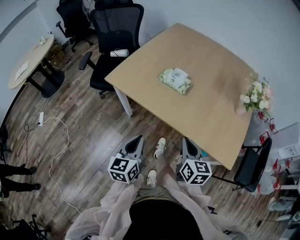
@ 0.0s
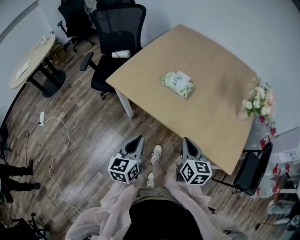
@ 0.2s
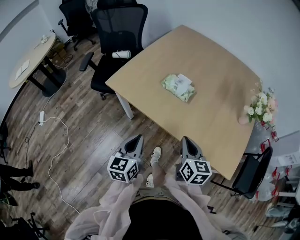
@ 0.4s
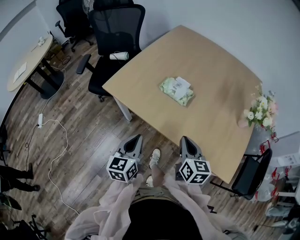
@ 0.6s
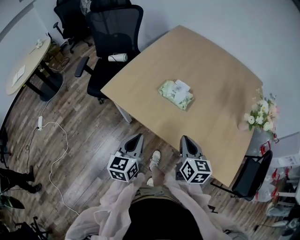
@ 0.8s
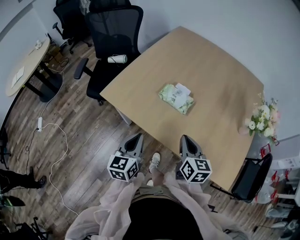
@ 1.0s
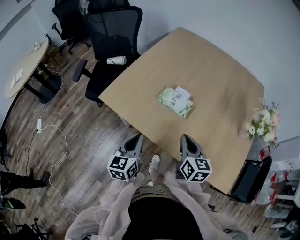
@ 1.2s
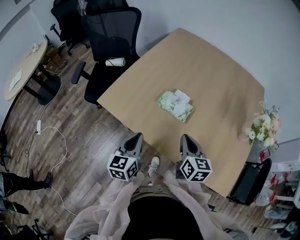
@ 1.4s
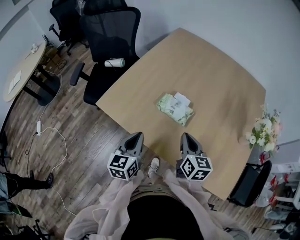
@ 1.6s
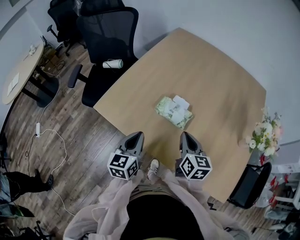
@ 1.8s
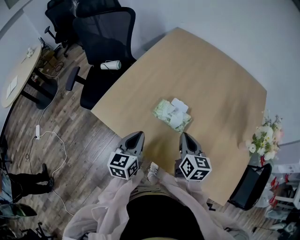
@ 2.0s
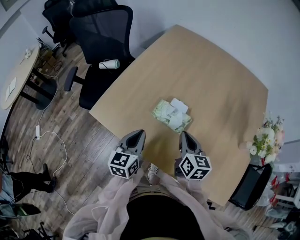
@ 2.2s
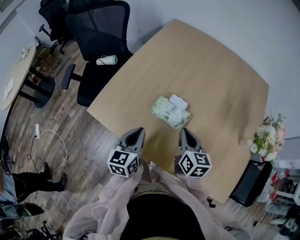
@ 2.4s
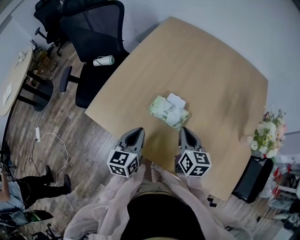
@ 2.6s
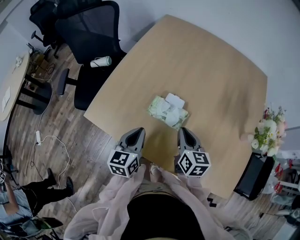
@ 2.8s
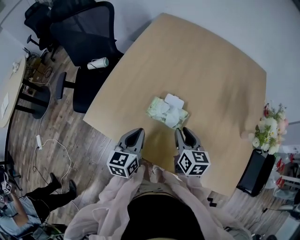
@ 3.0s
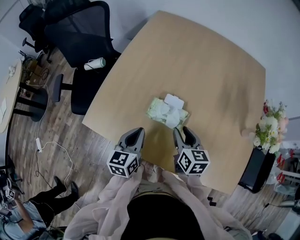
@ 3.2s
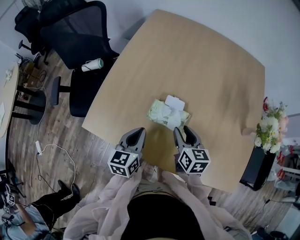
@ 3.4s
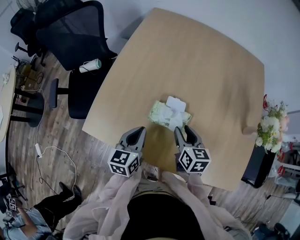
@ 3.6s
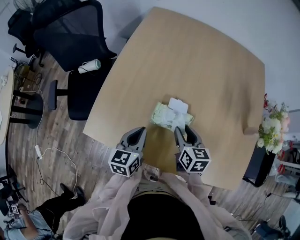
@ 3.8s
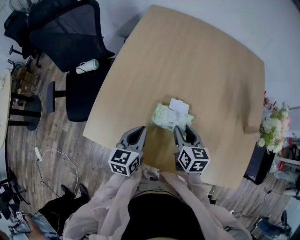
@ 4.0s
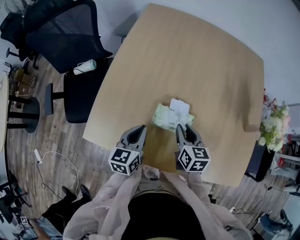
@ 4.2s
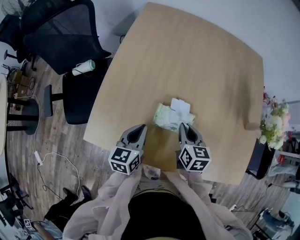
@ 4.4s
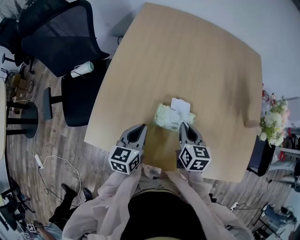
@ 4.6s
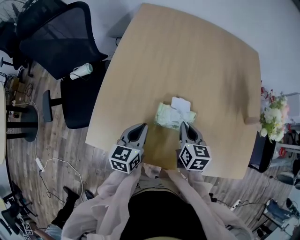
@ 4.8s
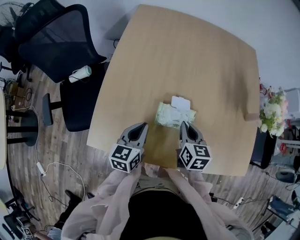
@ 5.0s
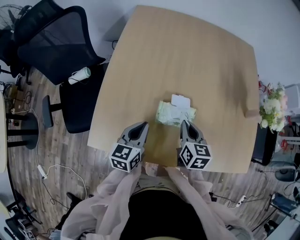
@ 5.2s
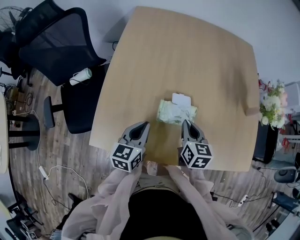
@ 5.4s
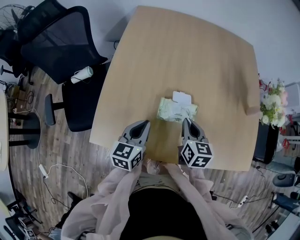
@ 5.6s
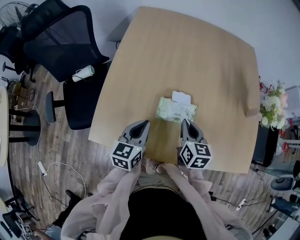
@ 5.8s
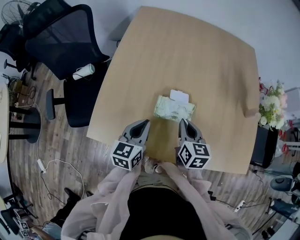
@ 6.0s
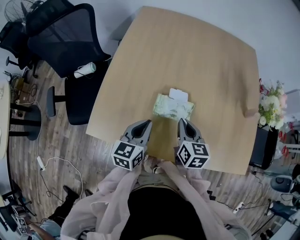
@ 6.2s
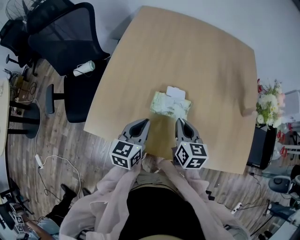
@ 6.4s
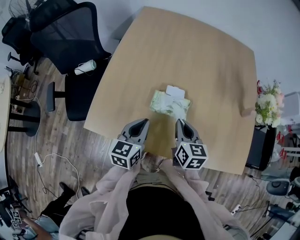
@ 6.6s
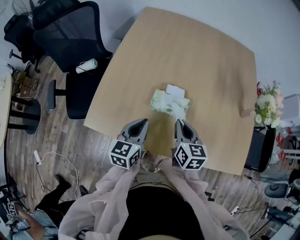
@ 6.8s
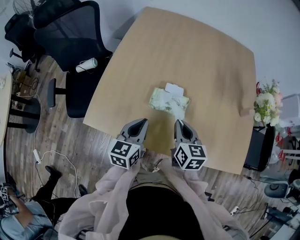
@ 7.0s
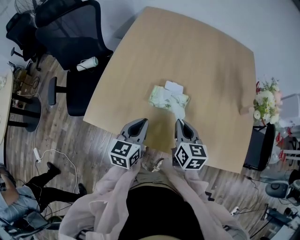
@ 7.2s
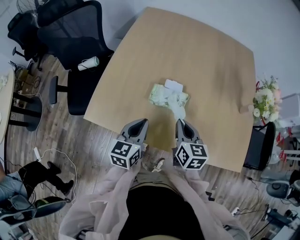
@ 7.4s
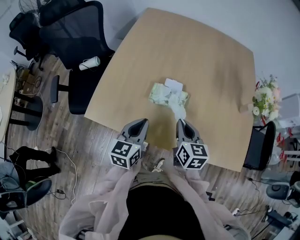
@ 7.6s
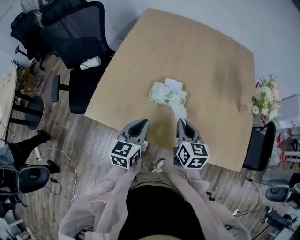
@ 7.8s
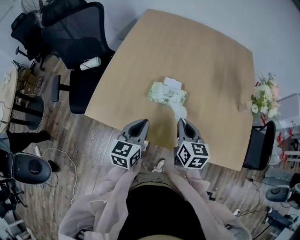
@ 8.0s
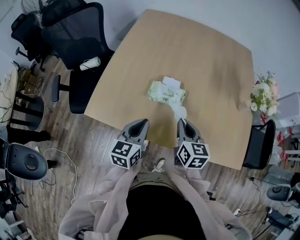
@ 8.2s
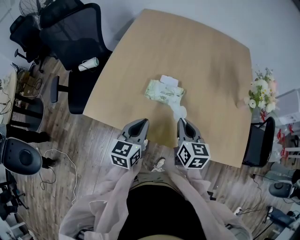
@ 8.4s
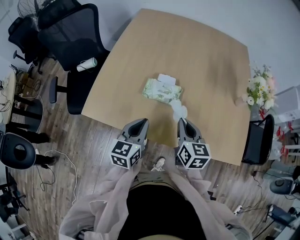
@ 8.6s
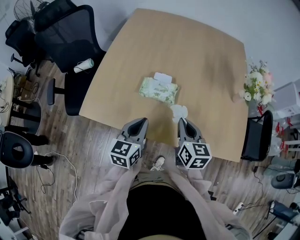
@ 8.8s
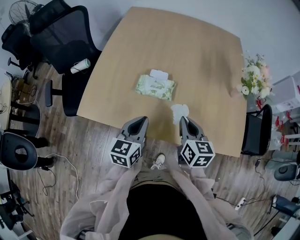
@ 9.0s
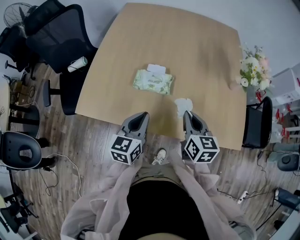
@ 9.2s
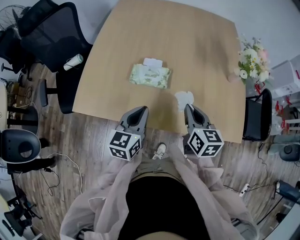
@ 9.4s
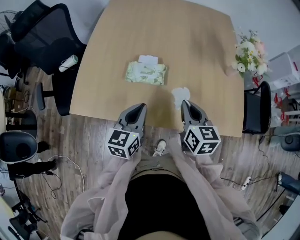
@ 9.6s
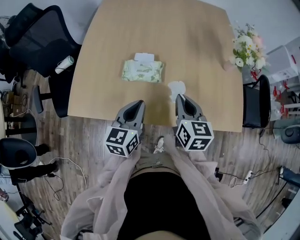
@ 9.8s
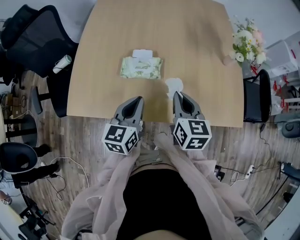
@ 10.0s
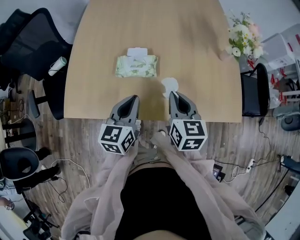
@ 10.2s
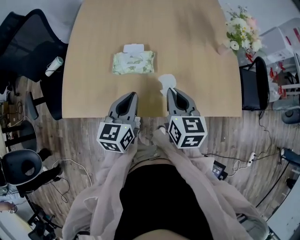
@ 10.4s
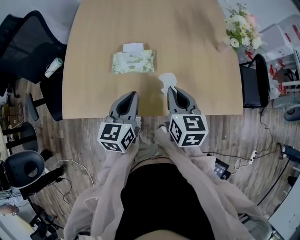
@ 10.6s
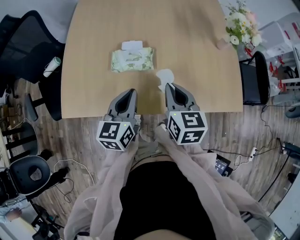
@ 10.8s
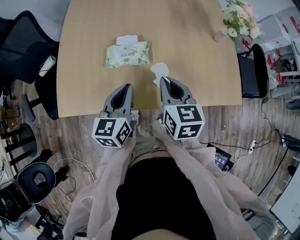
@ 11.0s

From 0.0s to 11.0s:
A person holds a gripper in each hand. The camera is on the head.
From 0.0s to 1.6s: The two grippers go roughly 20 cm forward.
From 1.6s to 3.2s: Both grippers travel together forward, roughly 10 cm. The right gripper opens its fingers.
From 3.2s to 4.8s: The left gripper moves forward, about 5 cm. Meanwhile the right gripper ends up some 5 cm from where it was, and closes up.
From 4.8s to 6.2s: The left gripper changes place by roughly 5 cm.
From 6.2s to 7.8s: The grippers both shift backward by roughly 5 cm.
From 7.8s to 9.4s: The grippers both shift to the right by some 10 cm.
From 9.4s to 11.0s: The grippers stay close to where they were, moving slightly.

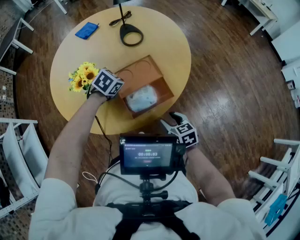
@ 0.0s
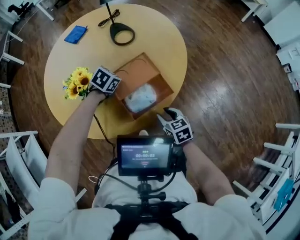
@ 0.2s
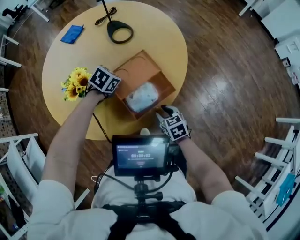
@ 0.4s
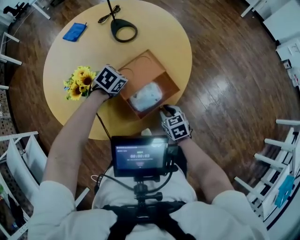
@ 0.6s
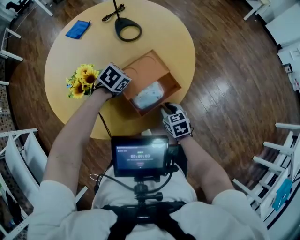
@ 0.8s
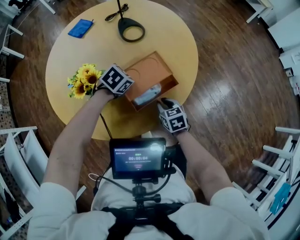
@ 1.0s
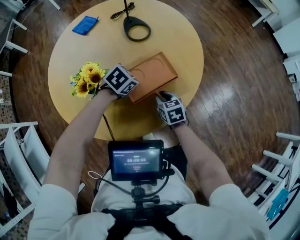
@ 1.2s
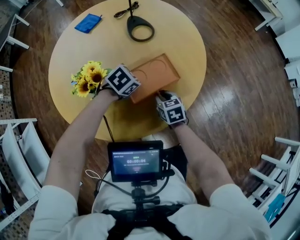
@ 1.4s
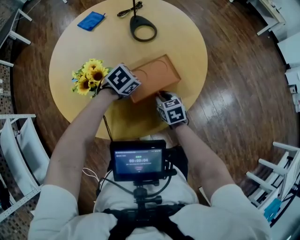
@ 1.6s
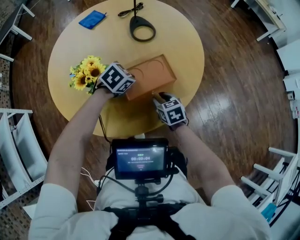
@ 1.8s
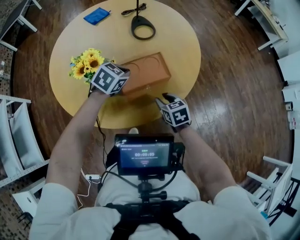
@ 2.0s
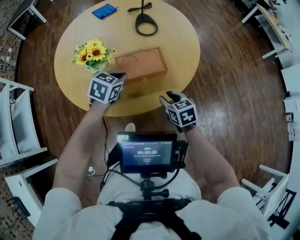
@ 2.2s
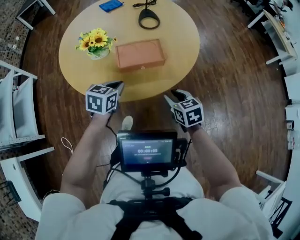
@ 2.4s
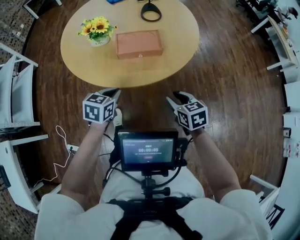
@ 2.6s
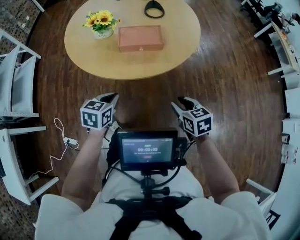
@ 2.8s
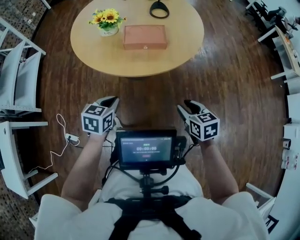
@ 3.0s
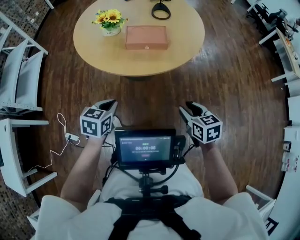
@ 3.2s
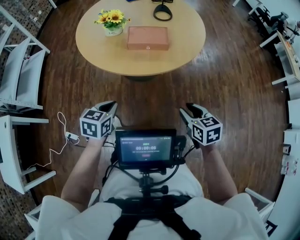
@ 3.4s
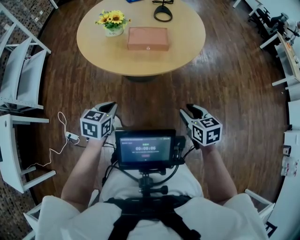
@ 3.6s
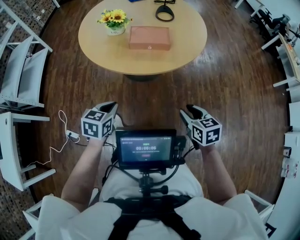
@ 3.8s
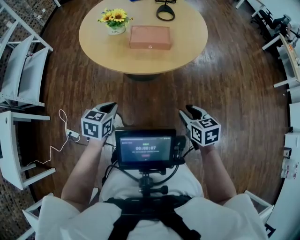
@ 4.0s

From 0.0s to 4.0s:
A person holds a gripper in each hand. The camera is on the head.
From 0.0s to 1.4s: The right gripper goes about 20 cm to the left and forward, and closes its fingers.
From 1.4s to 2.6s: The left gripper moves about 25 cm, and changes its angle by approximately 60 degrees. Meanwhile the right gripper shifts by roughly 25 cm, and rotates approximately 20 degrees.
From 2.6s to 4.0s: Both grippers travel together backward, roughly 15 cm.

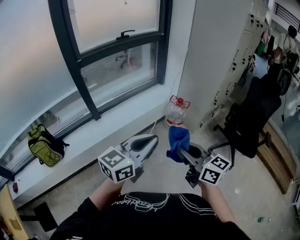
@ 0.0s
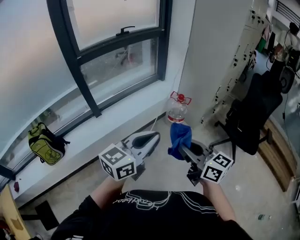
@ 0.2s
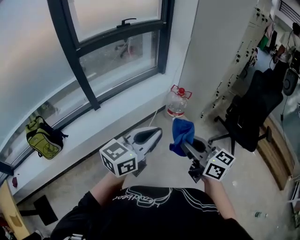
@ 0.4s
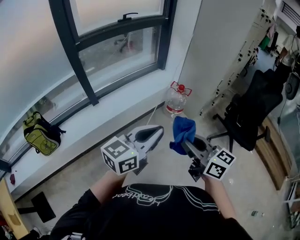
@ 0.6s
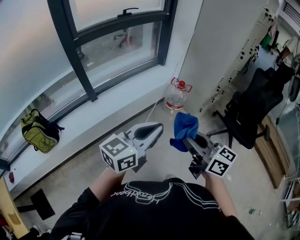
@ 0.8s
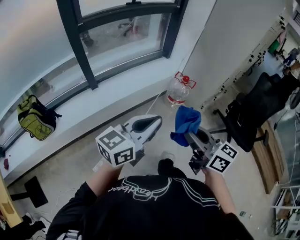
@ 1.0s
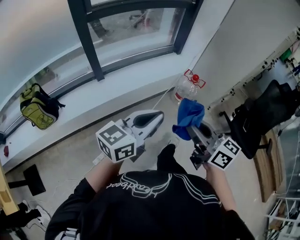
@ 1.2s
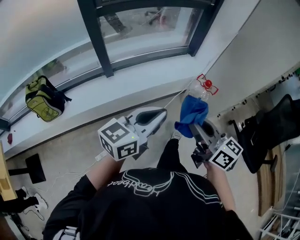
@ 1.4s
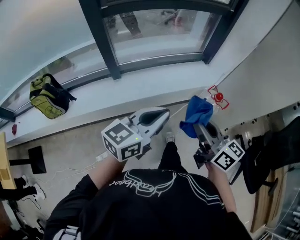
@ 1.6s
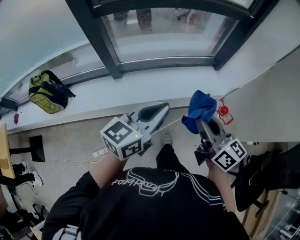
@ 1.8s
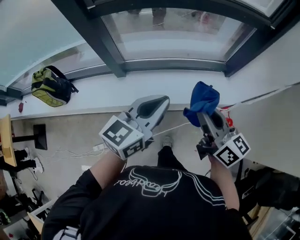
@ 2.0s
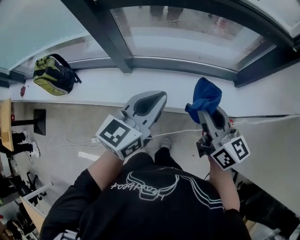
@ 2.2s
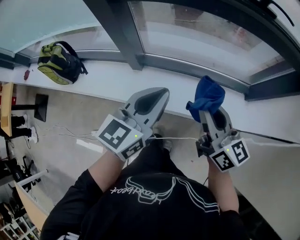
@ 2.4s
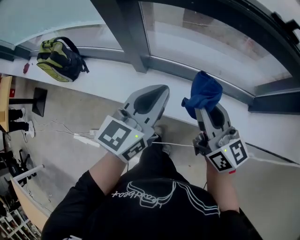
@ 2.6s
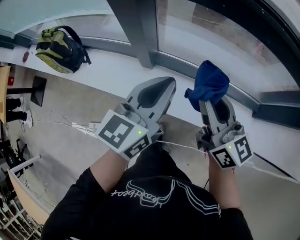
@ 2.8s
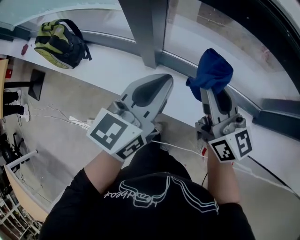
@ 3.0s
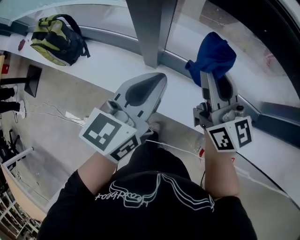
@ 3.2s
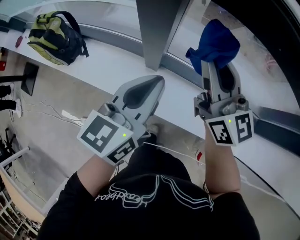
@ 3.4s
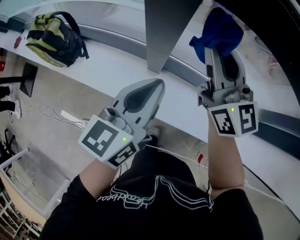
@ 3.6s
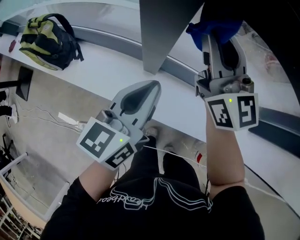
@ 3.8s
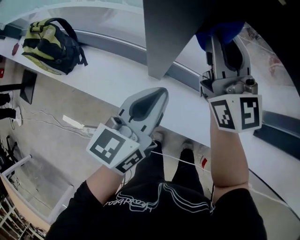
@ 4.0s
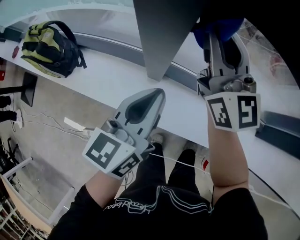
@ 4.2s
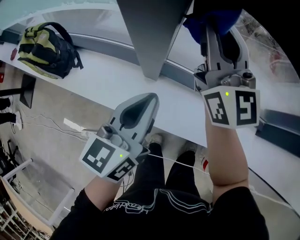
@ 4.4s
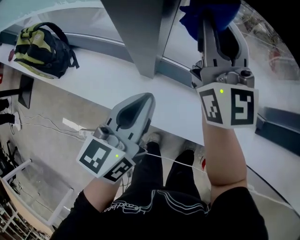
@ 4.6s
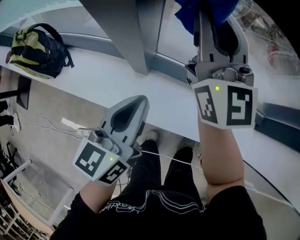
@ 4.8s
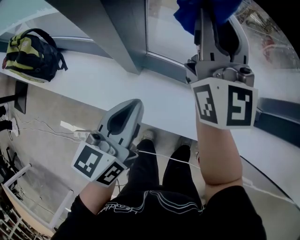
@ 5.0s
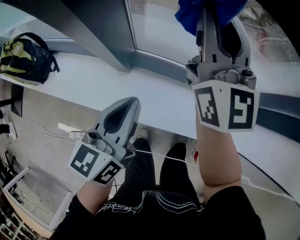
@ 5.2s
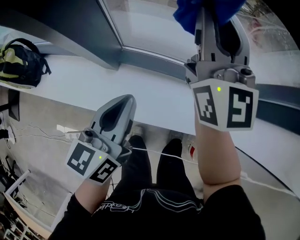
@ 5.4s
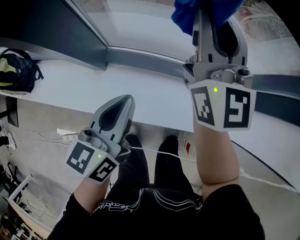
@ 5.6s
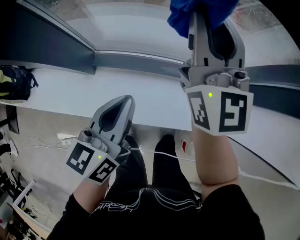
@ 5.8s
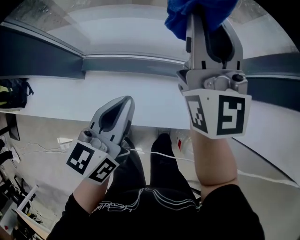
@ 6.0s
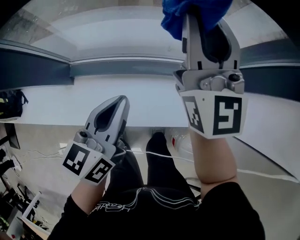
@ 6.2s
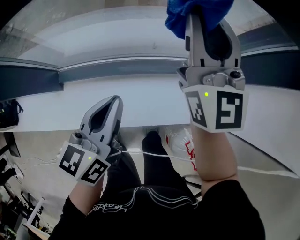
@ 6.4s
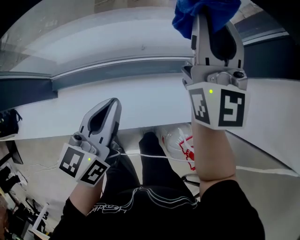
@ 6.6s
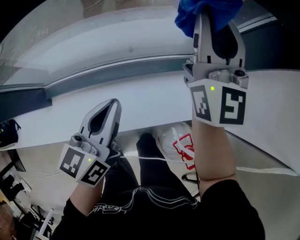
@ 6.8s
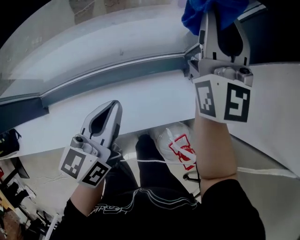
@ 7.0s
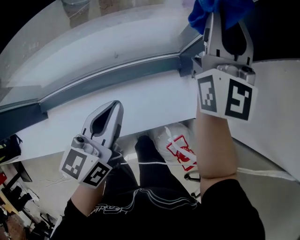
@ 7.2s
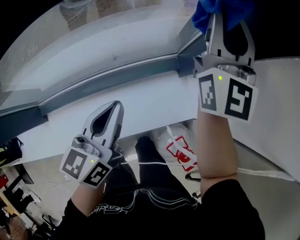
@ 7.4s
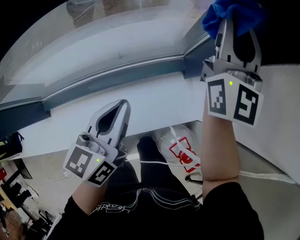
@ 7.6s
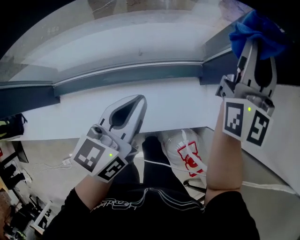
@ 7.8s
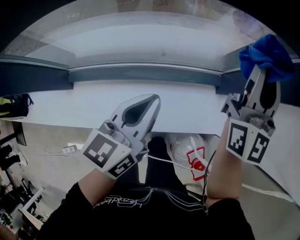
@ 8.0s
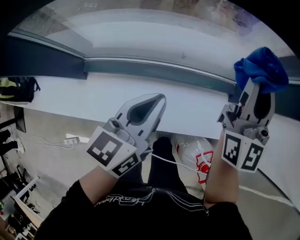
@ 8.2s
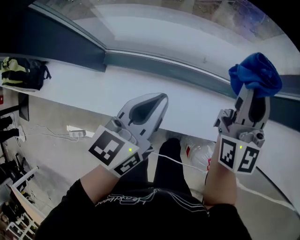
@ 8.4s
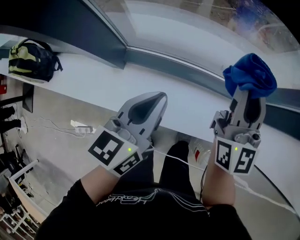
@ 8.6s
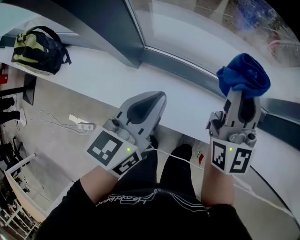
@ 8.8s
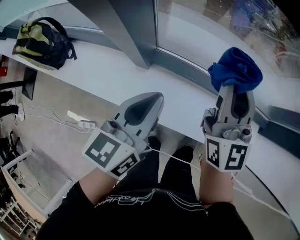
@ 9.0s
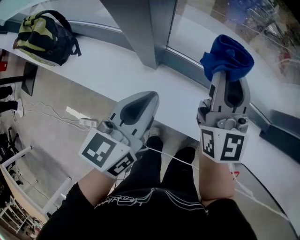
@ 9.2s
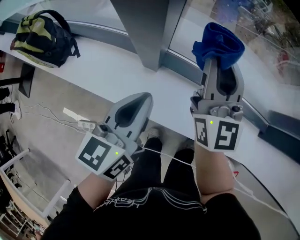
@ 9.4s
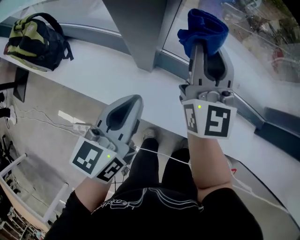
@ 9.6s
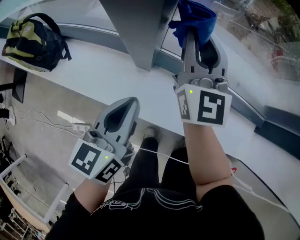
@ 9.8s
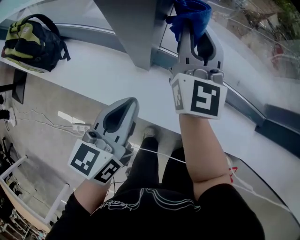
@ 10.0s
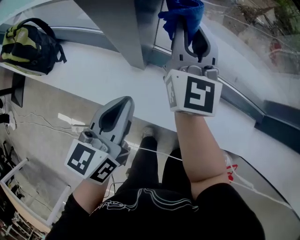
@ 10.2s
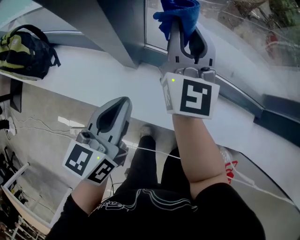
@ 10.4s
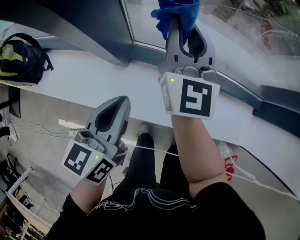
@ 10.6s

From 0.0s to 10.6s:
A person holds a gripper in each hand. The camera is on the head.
From 0.0s to 1.6s: The two grippers go about 25 cm forward.
From 1.6s to 3.0s: The two grippers travel together, about 50 cm. The left gripper swivels some 50 degrees, while the right gripper changes its angle by approximately 30 degrees.
From 3.0s to 4.6s: The right gripper goes approximately 20 cm forward and to the left, and changes its angle by roughly 30 degrees. Meanwhile the left gripper heads downward, to the left and forward, covering some 15 cm.
From 4.6s to 6.0s: The two grippers go roughly 35 cm to the right.
From 6.0s to 7.6s: The right gripper is displaced to the right by roughly 40 cm, and turns by some 30 degrees. The left gripper travels to the right and forward by some 30 cm.
From 7.6s to 9.0s: The pair of grippers is taken some 60 cm. The left gripper changes its angle by roughly 30 degrees; the right gripper swivels roughly 40 degrees.
From 9.0s to 10.6s: The right gripper heads forward and to the left, covering about 10 cm. The left gripper goes to the left and returns, roughly 10 cm each way.